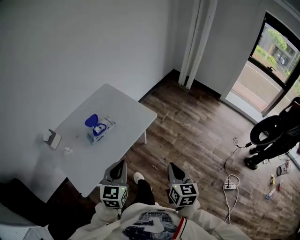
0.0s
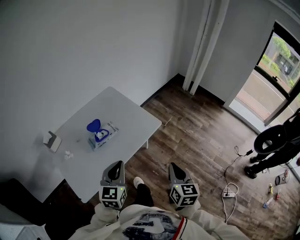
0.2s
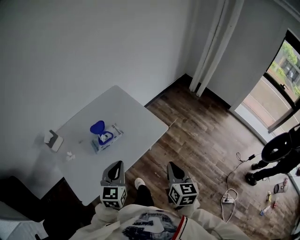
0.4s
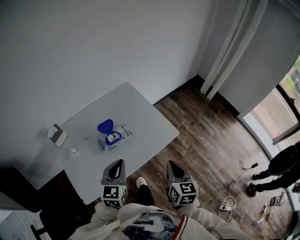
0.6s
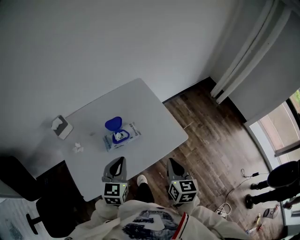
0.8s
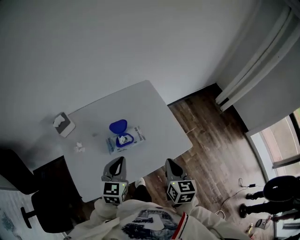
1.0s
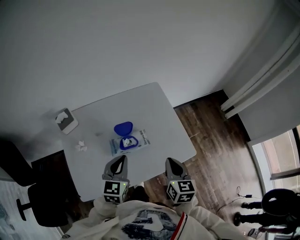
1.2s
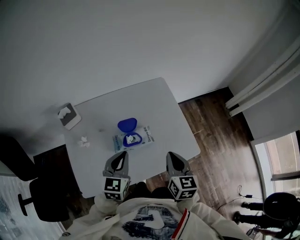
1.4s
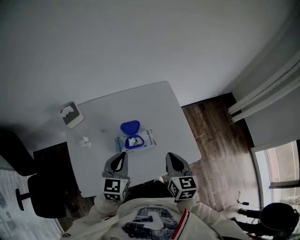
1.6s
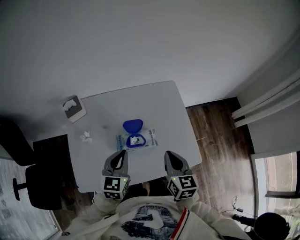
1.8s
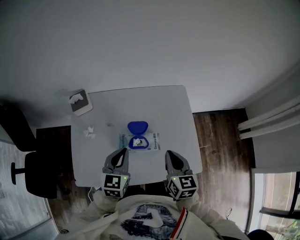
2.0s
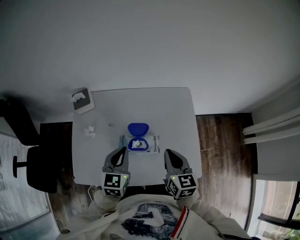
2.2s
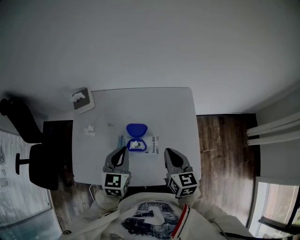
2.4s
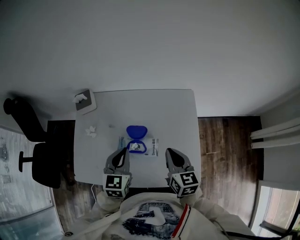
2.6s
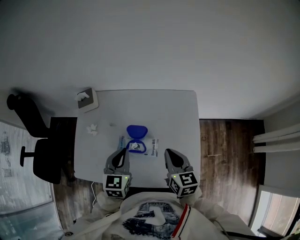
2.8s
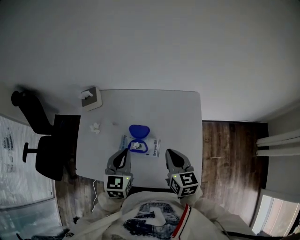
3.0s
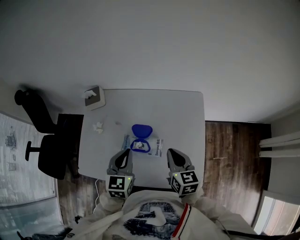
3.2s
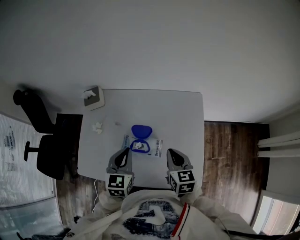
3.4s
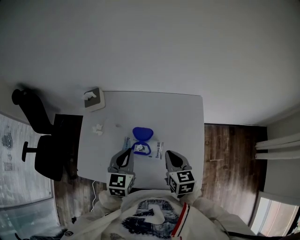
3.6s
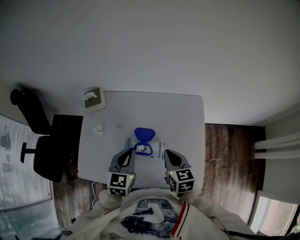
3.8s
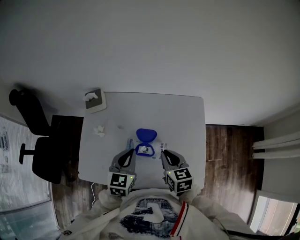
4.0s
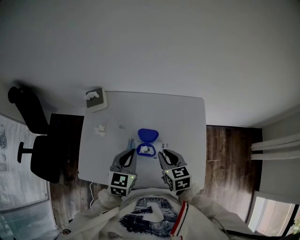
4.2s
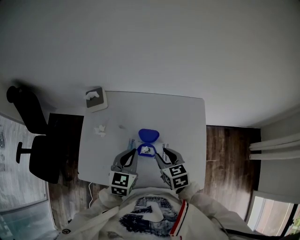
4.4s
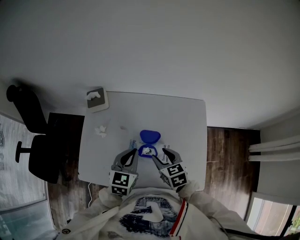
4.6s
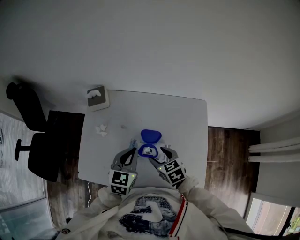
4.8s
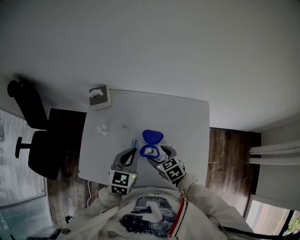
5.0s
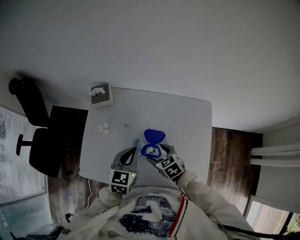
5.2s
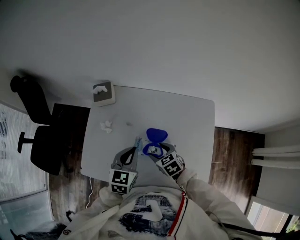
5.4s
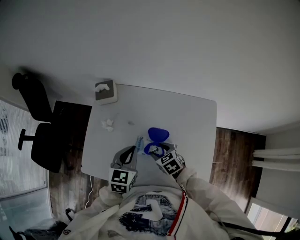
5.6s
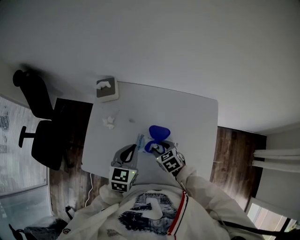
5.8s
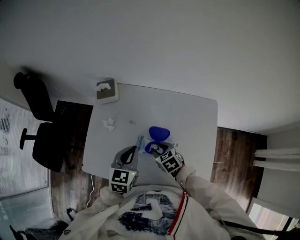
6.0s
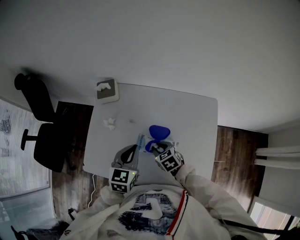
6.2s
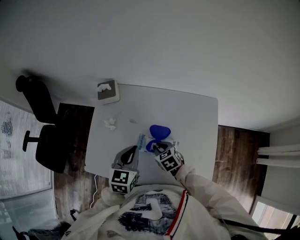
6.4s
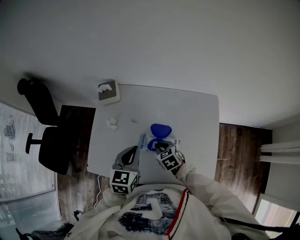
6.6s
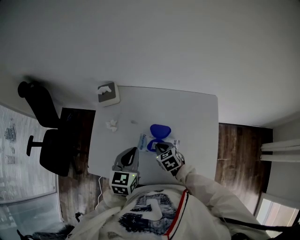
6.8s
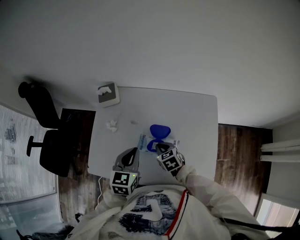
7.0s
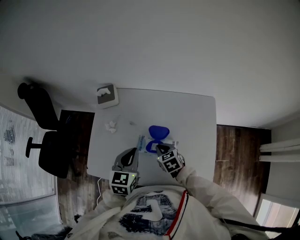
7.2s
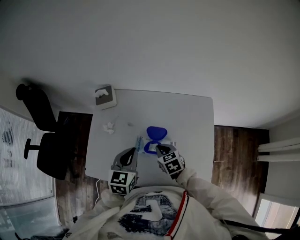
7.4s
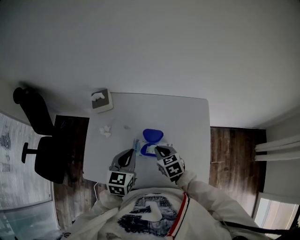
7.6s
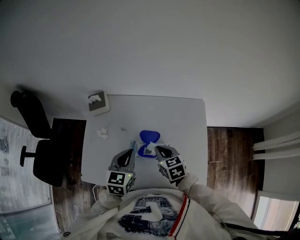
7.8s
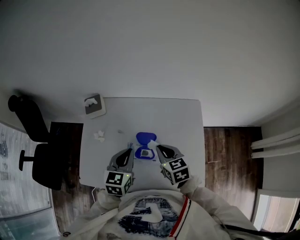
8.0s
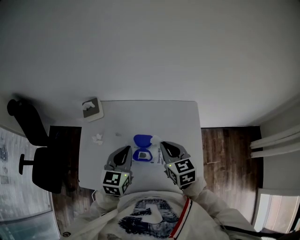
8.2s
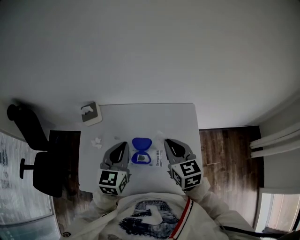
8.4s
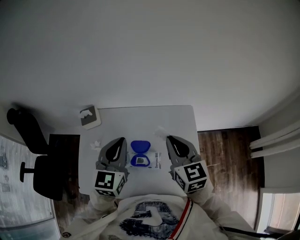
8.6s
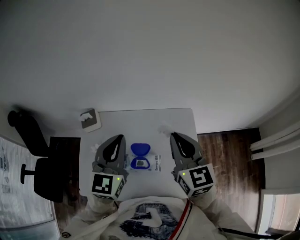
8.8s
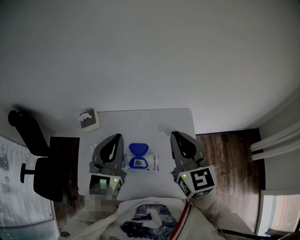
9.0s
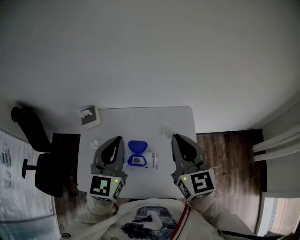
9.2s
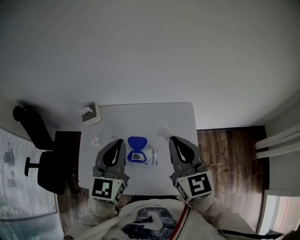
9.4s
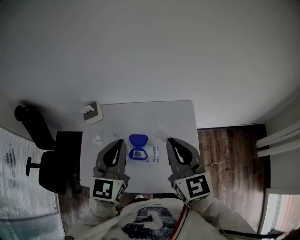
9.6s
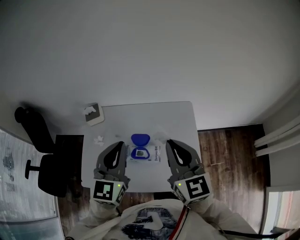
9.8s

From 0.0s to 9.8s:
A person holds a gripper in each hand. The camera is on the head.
From 0.0s to 1.4s: The left gripper shifts by some 25 cm, and swivels about 30 degrees, while the right gripper ends up approximately 35 cm from where it was, and turns by some 30 degrees.
From 1.4s to 2.8s: The left gripper shifts by roughly 5 cm, and swivels about 30 degrees. Meanwhile the right gripper moves roughly 15 cm, and turns by about 30 degrees.
From 2.8s to 4.2s: The right gripper is displaced to the left by about 10 cm.
From 4.2s to 5.6s: The right gripper shifts about 15 cm downward and to the left, turns by roughly 30 degrees, and opens up.
From 5.6s to 7.0s: The right gripper closes.
From 7.0s to 8.4s: The right gripper is displaced upward and to the right by about 25 cm, and changes its angle by roughly 30 degrees, while the left gripper heads upward, forward and to the right, covering roughly 10 cm.
From 8.4s to 9.8s: Both grippers travel together upward and backward, approximately 15 cm. The right gripper changes its angle by about 20 degrees.

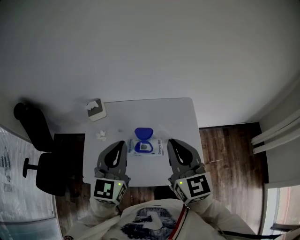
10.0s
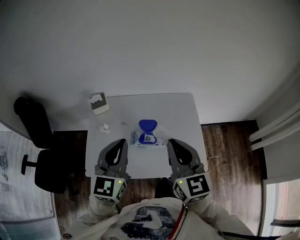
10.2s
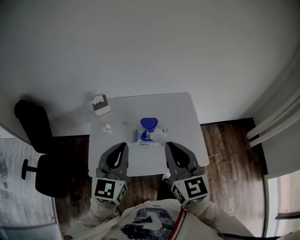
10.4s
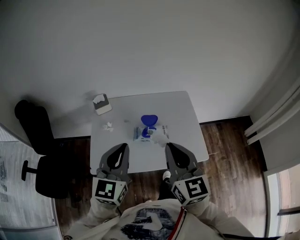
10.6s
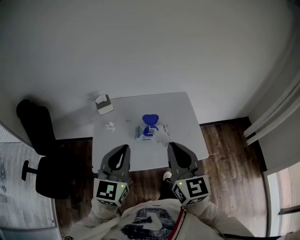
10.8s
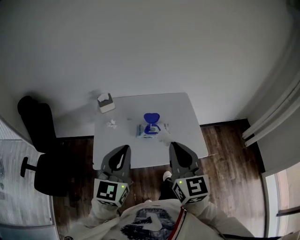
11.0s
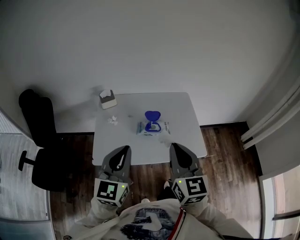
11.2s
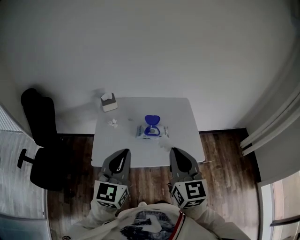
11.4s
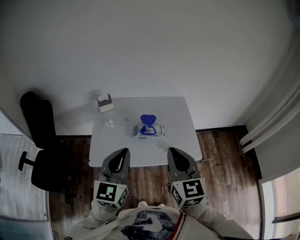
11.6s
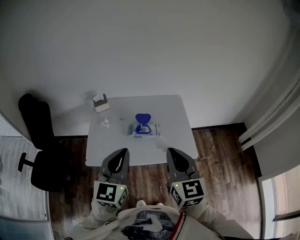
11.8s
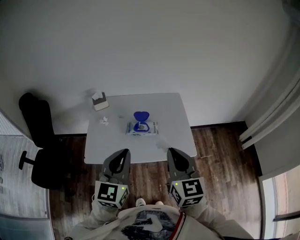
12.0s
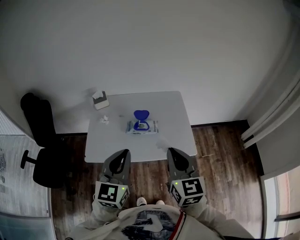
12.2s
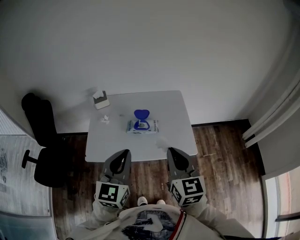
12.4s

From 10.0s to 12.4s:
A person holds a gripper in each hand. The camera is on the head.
From 10.0s to 11.2s: The two grippers go some 20 cm backward.
From 11.2s to 12.4s: The two grippers go approximately 10 cm to the right.

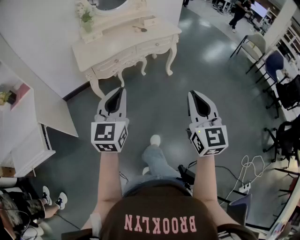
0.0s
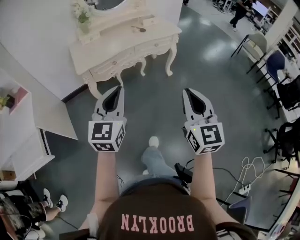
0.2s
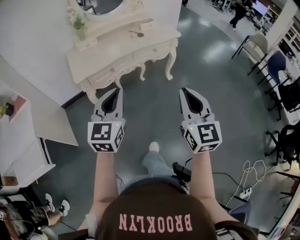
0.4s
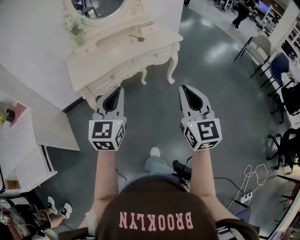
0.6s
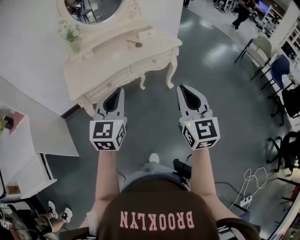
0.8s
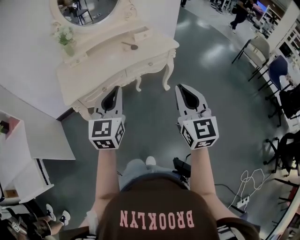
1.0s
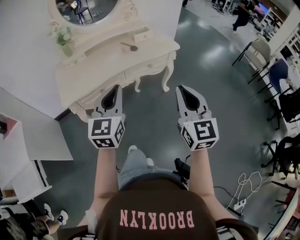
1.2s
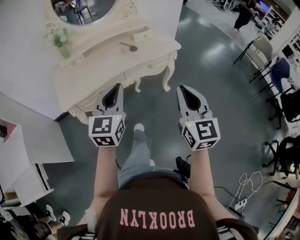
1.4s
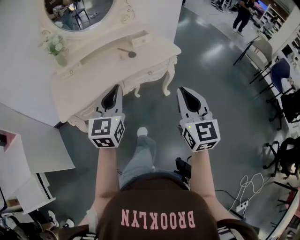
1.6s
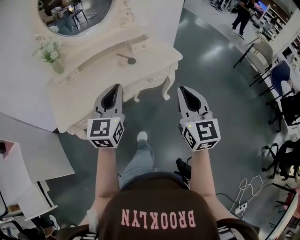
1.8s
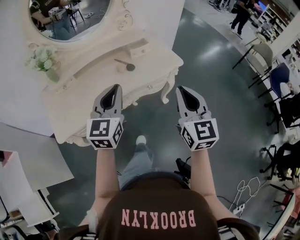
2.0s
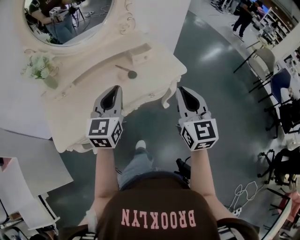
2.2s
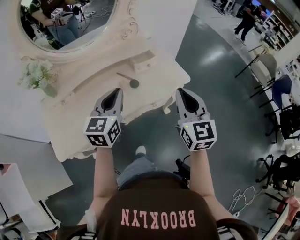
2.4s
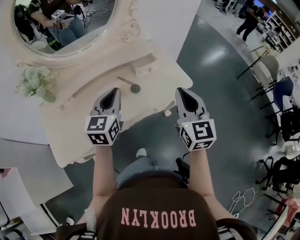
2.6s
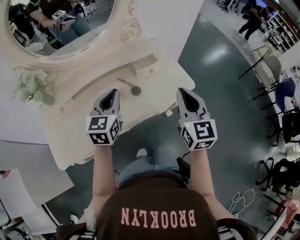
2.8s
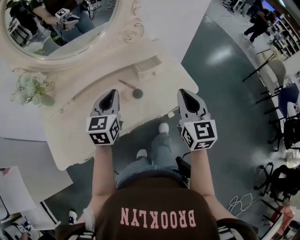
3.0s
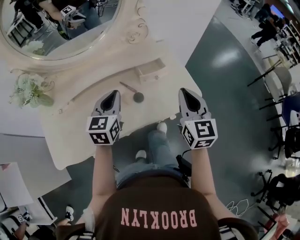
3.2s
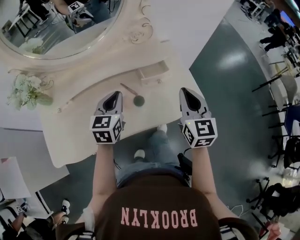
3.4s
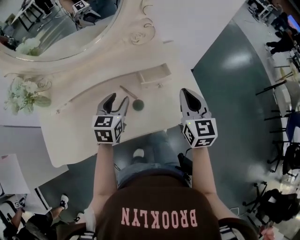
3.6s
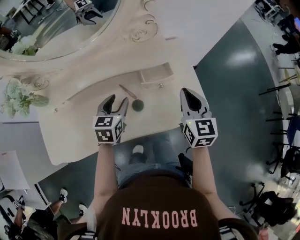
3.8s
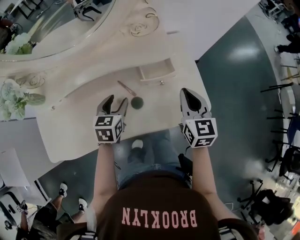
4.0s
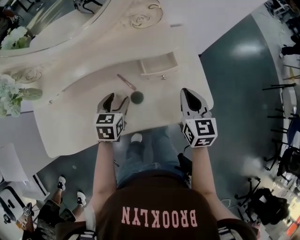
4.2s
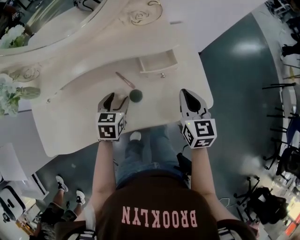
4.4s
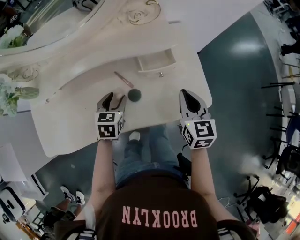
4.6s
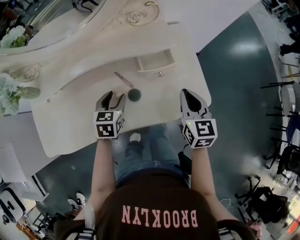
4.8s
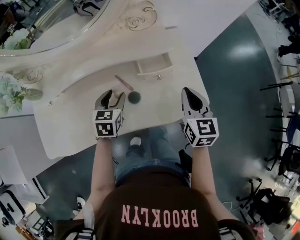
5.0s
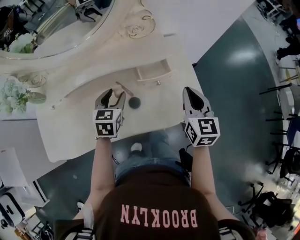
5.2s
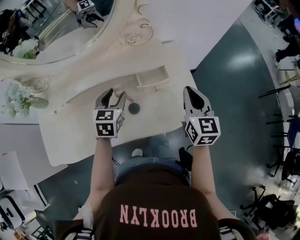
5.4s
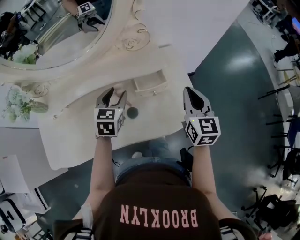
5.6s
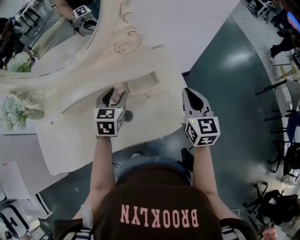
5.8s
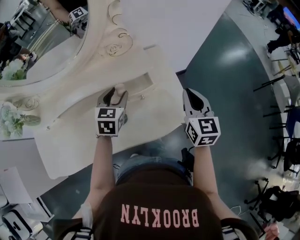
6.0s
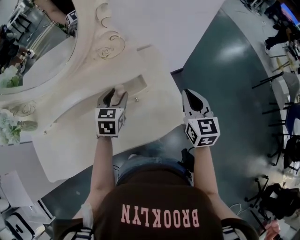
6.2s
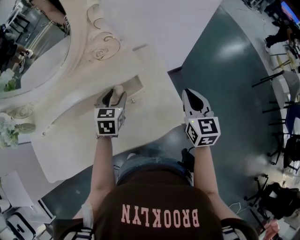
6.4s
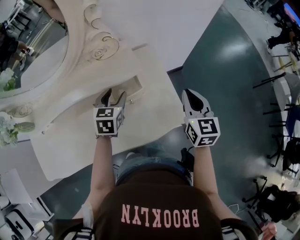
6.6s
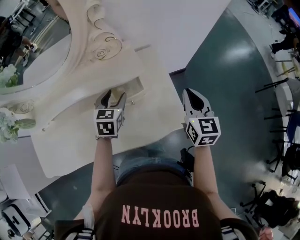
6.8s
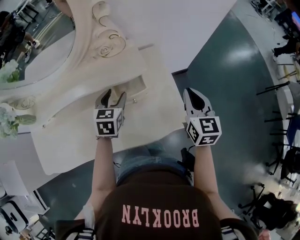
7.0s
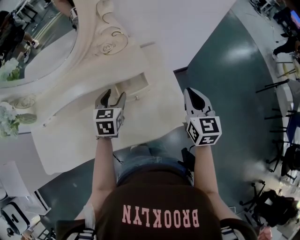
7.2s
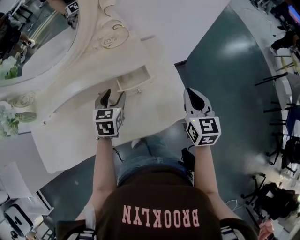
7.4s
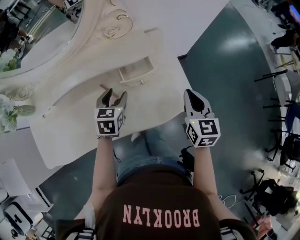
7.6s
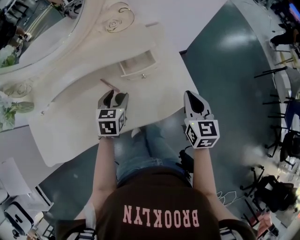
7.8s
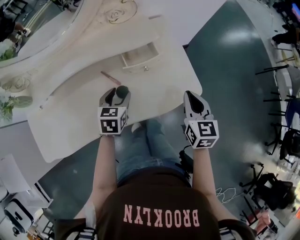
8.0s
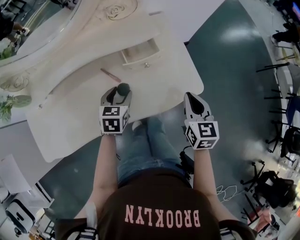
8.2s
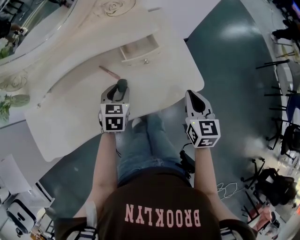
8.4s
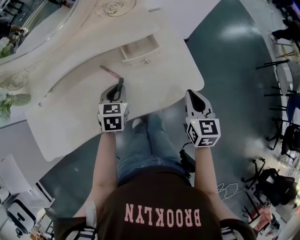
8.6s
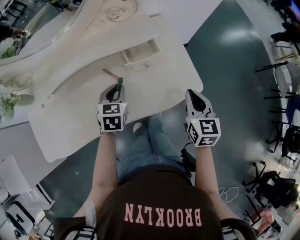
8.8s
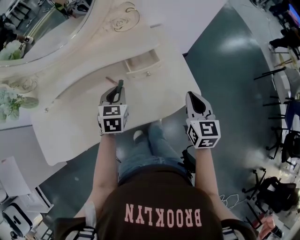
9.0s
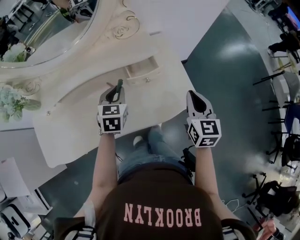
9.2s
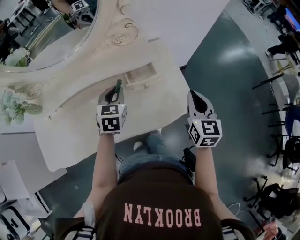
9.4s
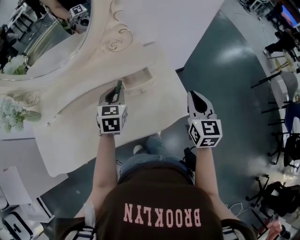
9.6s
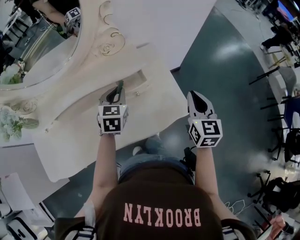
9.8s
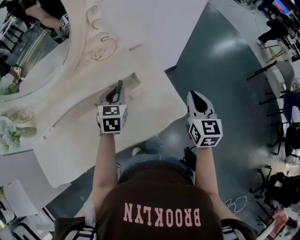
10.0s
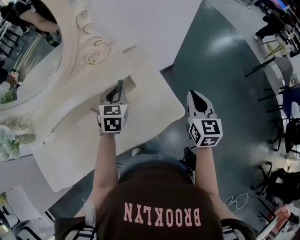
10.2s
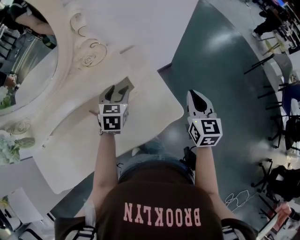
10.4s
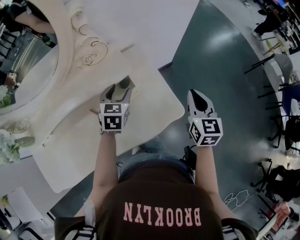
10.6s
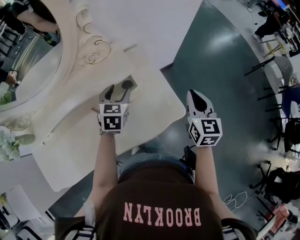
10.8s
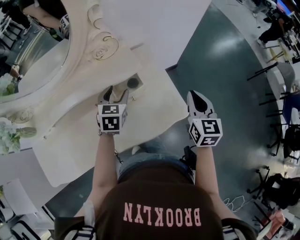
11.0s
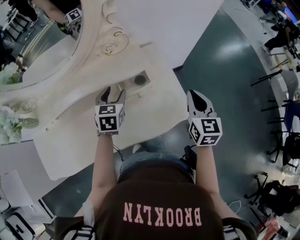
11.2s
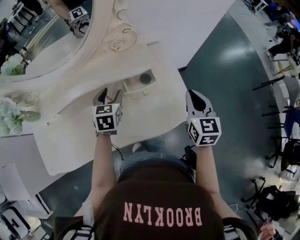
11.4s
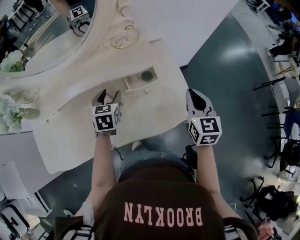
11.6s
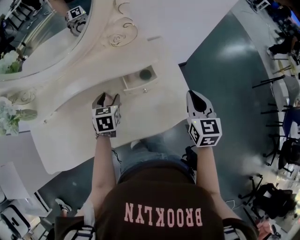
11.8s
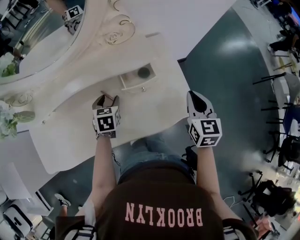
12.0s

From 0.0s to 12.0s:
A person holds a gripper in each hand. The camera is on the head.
From 0.0s to 1.6s: The two grippers go some 40 cm forward.
From 1.6s to 3.0s: The grippers both shift forward by approximately 35 cm.
From 3.0s to 4.4s: The left gripper heads downward, covering some 20 cm, tips its fingers downward by roughly 30 degrees, and opens its fingers, while the right gripper moves downward and forward, about 20 cm, and changes its angle by roughly 20 degrees.
From 4.4s to 6.0s: The right gripper heads to the right and upward, covering some 10 cm. Meanwhile the left gripper is displaced forward, upward and to the right by about 15 cm.
From 6.0s to 7.6s: The right gripper ends up approximately 5 cm from where it was; the left gripper moves backward and downward, about 10 cm.
From 7.6s to 9.0s: The left gripper closes up.
From 9.0s to 10.4s: The left gripper heads forward and to the right, covering some 15 cm, and opens. The right gripper heads to the right and forward, covering approximately 15 cm.
From 10.4s to 12.0s: The right gripper is displaced to the left by roughly 10 cm. The left gripper is displaced to the left, downward and backward by roughly 20 cm, and changes its angle by some 20 degrees.
